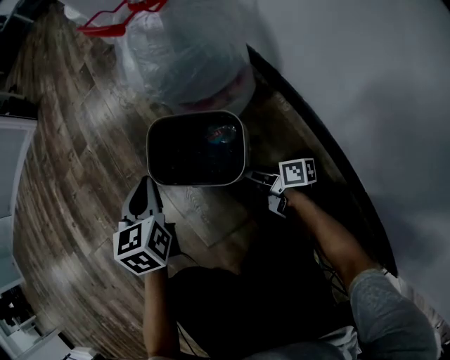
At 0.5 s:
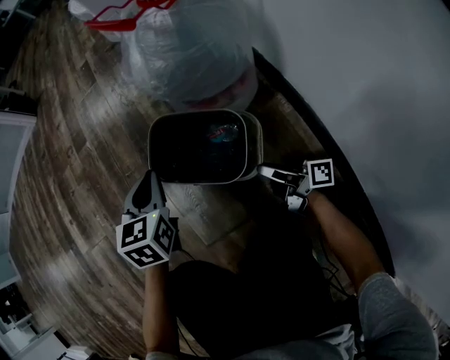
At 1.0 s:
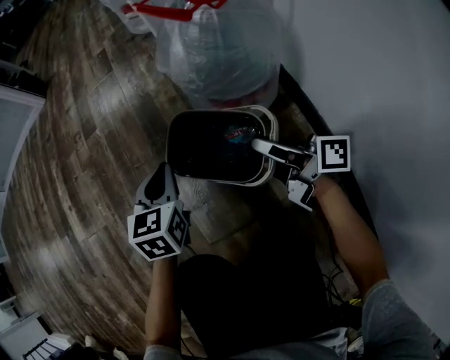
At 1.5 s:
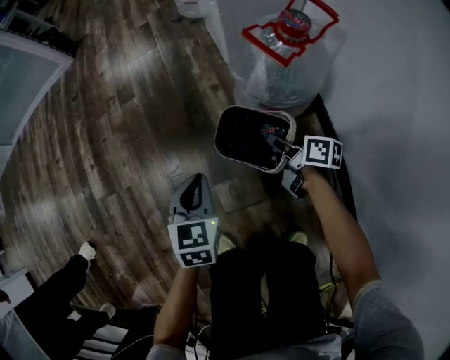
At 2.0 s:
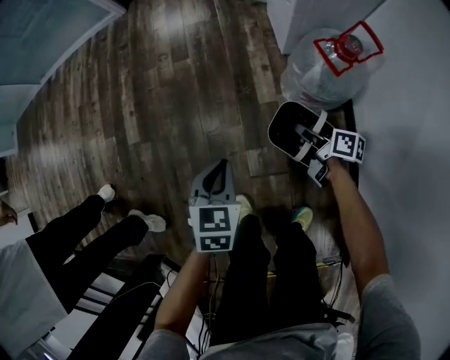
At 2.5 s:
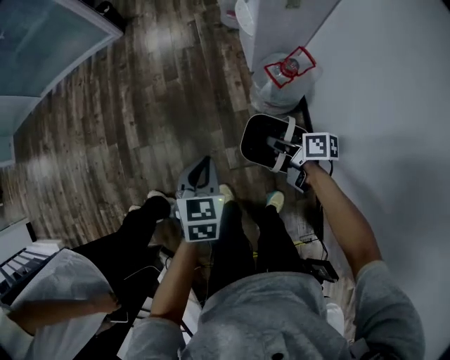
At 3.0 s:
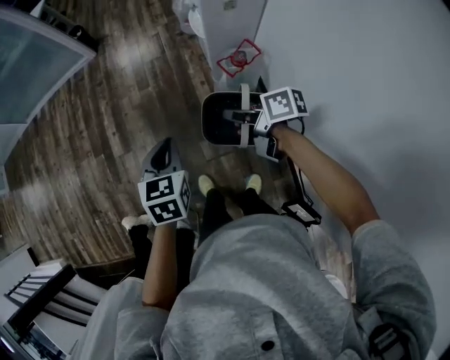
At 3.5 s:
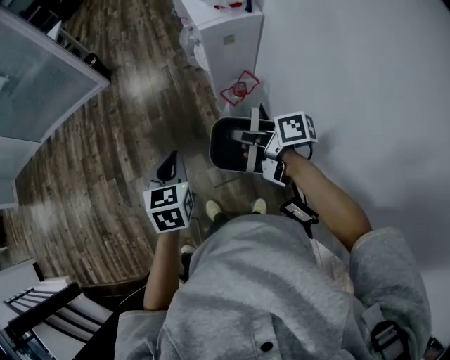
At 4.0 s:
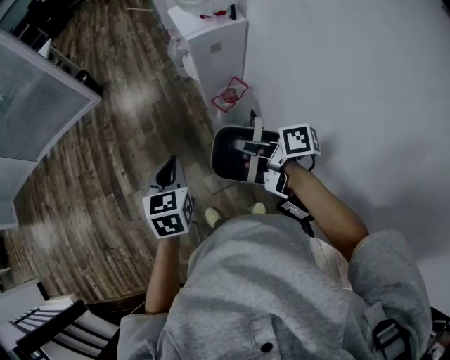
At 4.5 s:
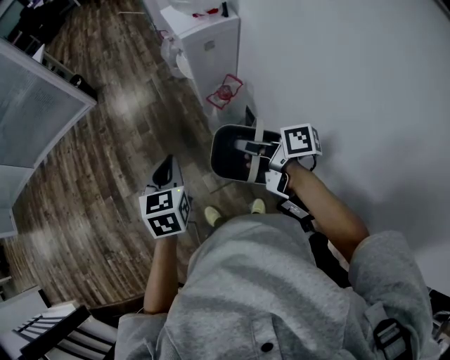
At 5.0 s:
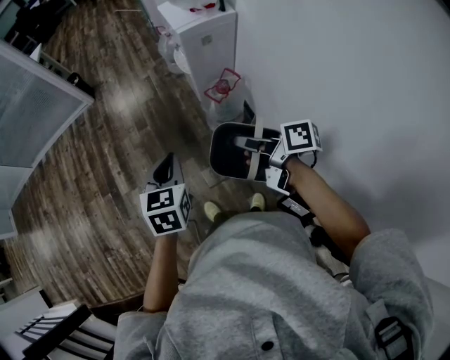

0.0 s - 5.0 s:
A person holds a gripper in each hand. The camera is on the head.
0.0 s - 2.5 s: Both grippers travel together upward, roughly 60 cm. The right gripper swivels roughly 20 degrees, and closes.
2.5 s - 5.0 s: Both grippers move upward, some 25 cm.

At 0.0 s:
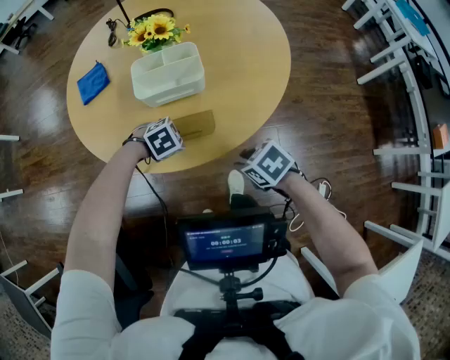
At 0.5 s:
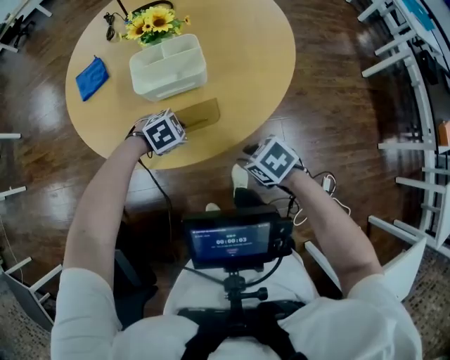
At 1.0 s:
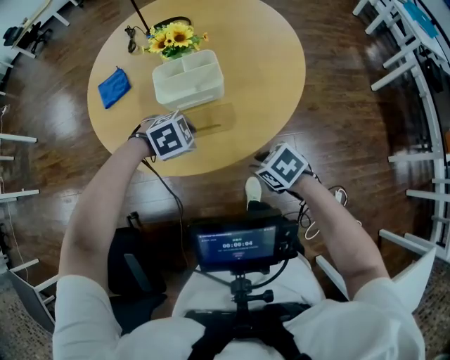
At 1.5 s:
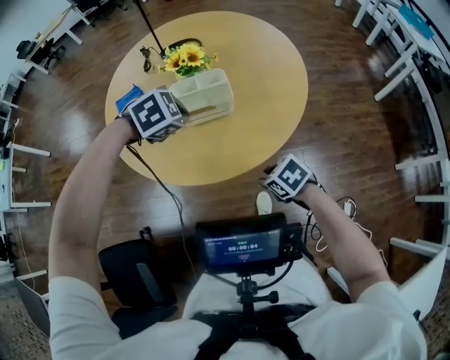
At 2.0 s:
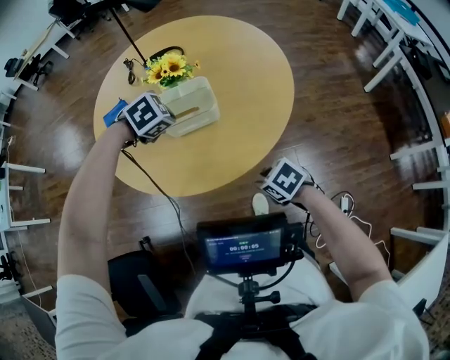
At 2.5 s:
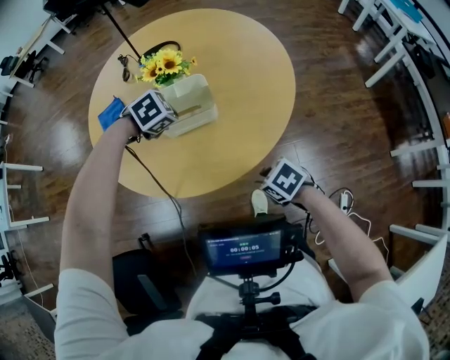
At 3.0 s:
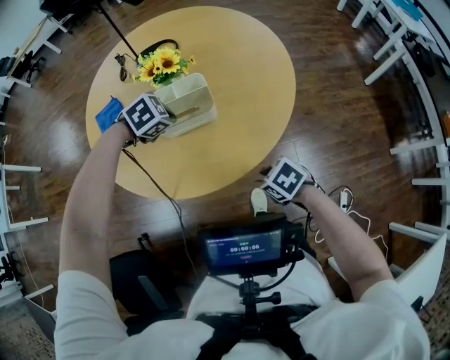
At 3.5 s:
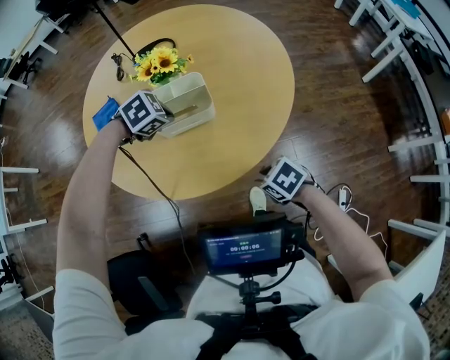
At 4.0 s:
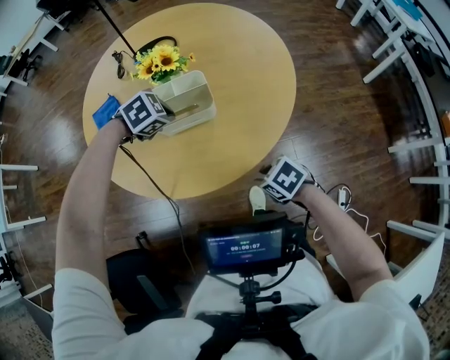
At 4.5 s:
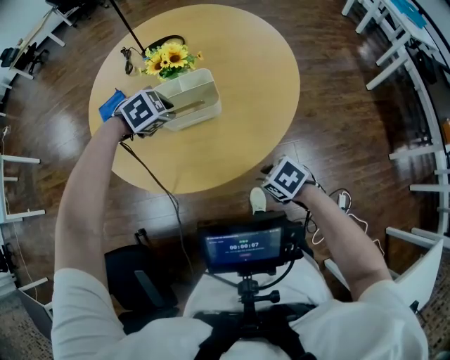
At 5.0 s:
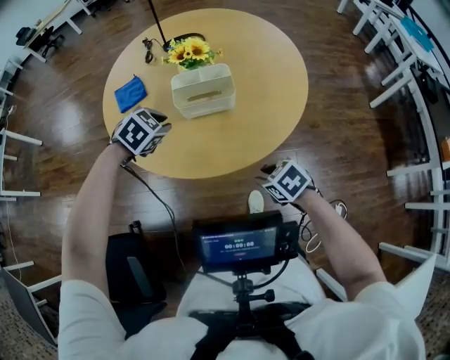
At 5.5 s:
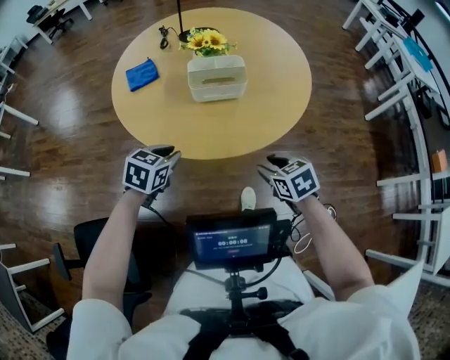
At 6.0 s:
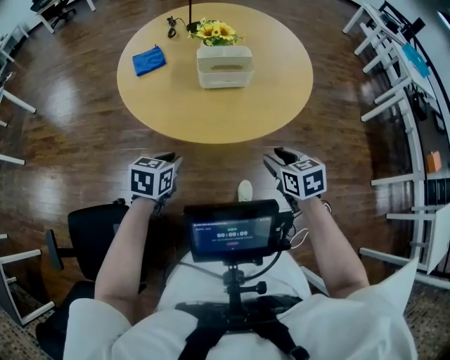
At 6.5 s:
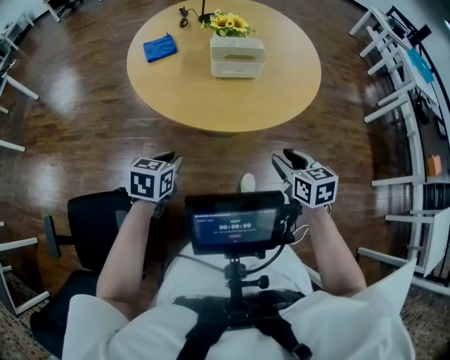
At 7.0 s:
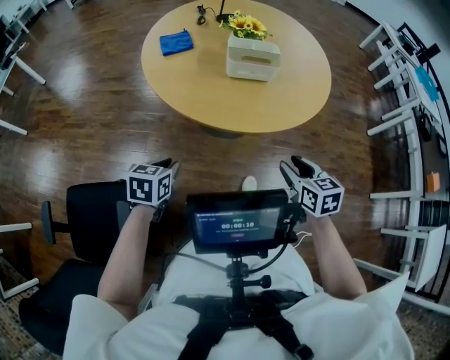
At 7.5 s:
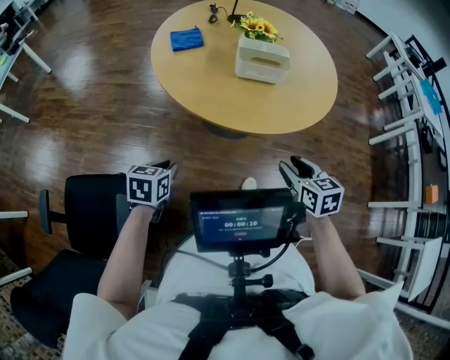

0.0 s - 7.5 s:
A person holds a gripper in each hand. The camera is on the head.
0.0 s - 2.0 s: The left gripper travels upward by some 20 cm.
2.0 s - 4.0 s: The left gripper goes roughly 5 cm downward.
4.0 s - 5.5 s: The left gripper moves approximately 25 cm, swivels some 50 degrees, and opens, while the right gripper heads upward, covering approximately 5 cm, and swivels roughly 20 degrees.
5.5 s - 7.5 s: The right gripper shifts roughly 10 cm backward. The left gripper heads backward and to the left, covering approximately 20 cm, and rotates some 30 degrees.

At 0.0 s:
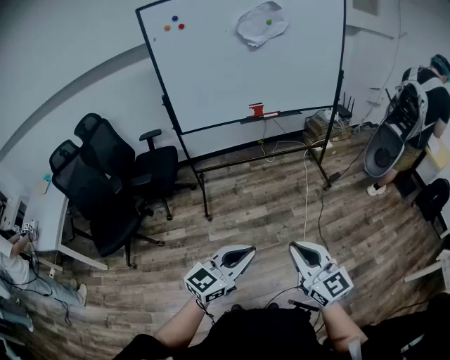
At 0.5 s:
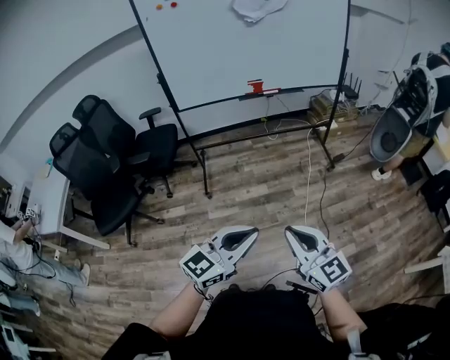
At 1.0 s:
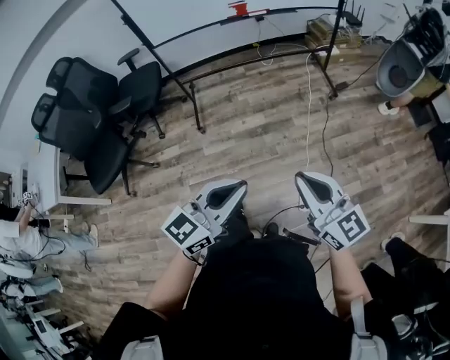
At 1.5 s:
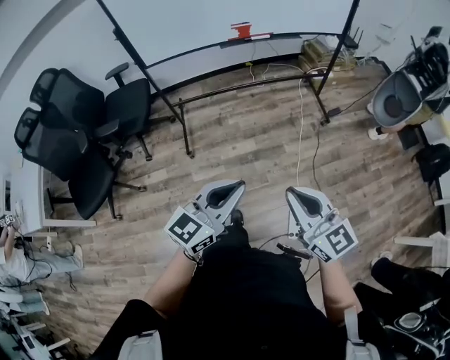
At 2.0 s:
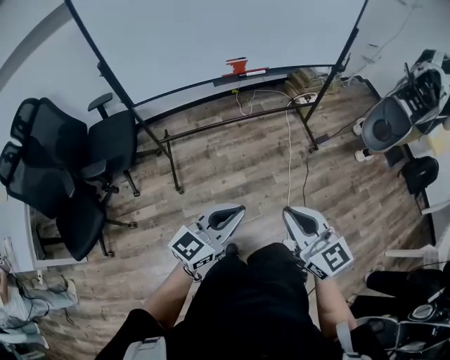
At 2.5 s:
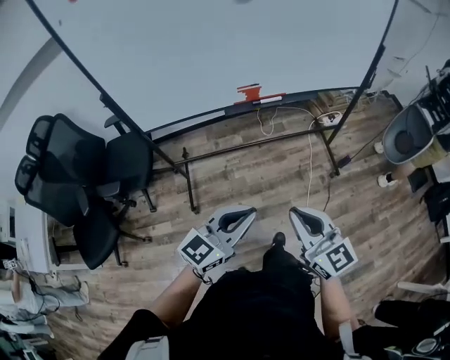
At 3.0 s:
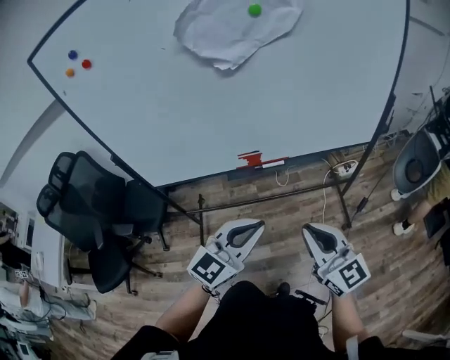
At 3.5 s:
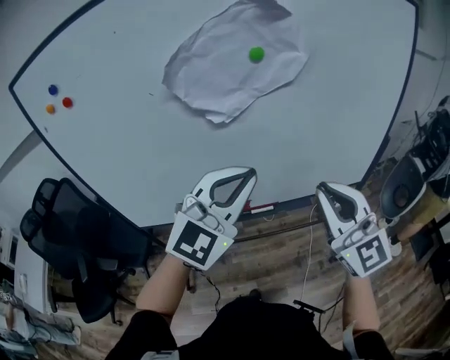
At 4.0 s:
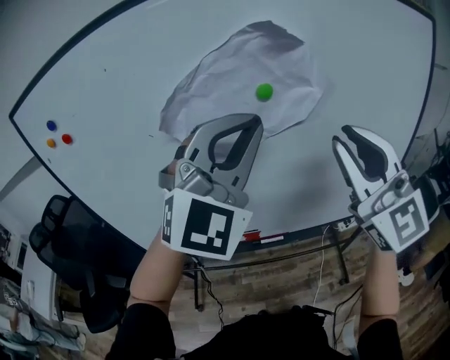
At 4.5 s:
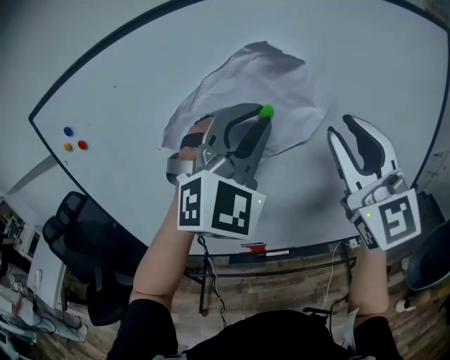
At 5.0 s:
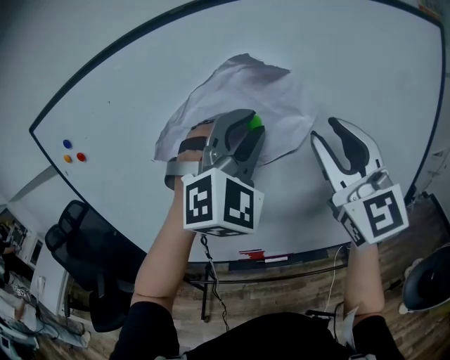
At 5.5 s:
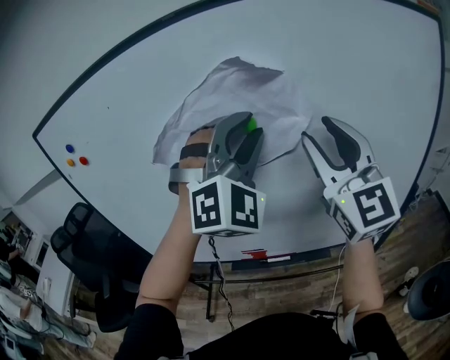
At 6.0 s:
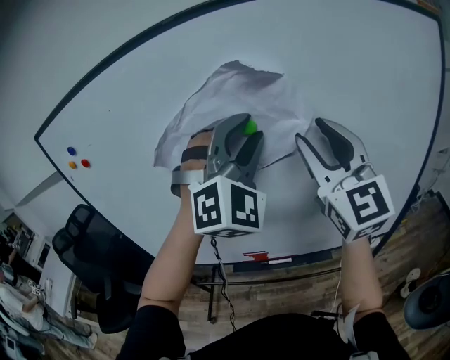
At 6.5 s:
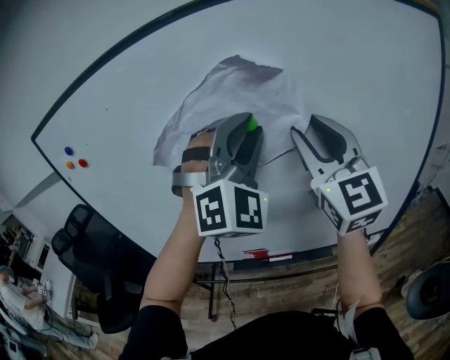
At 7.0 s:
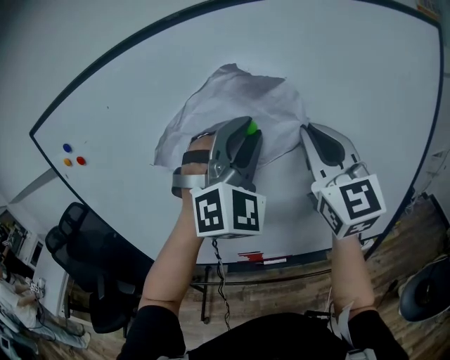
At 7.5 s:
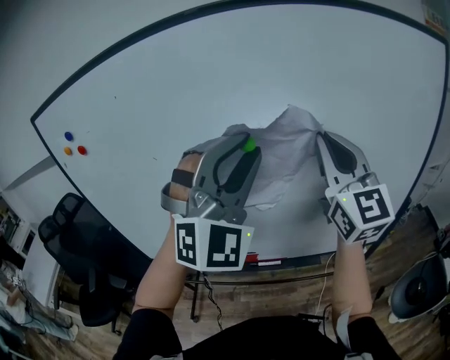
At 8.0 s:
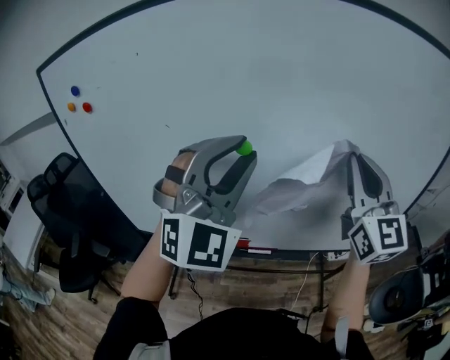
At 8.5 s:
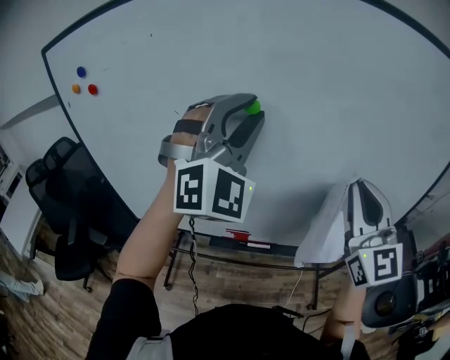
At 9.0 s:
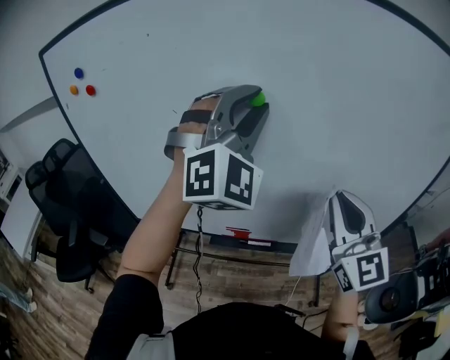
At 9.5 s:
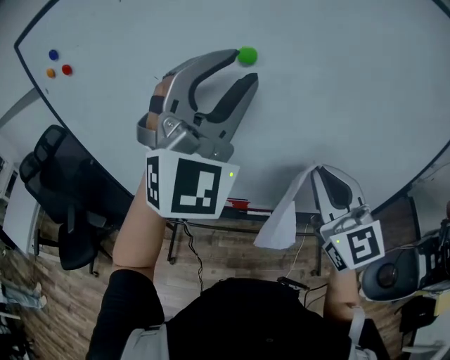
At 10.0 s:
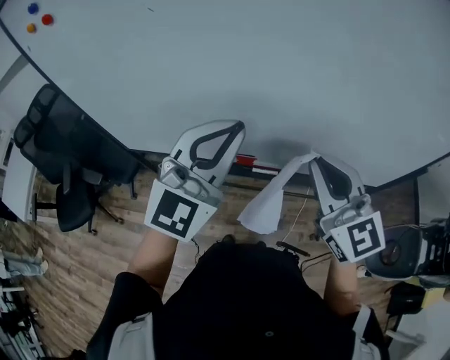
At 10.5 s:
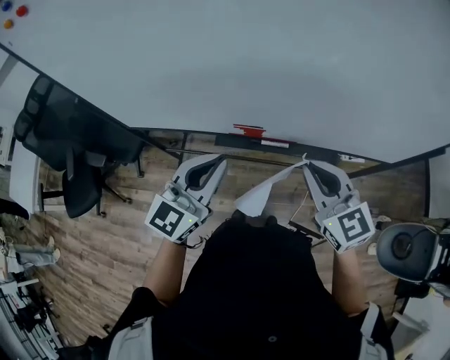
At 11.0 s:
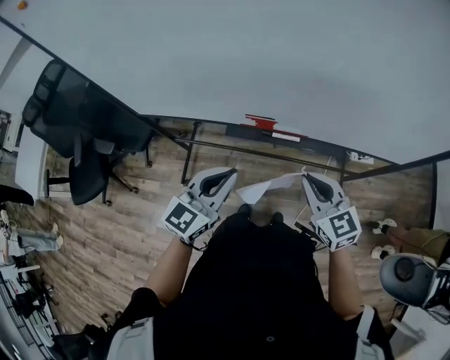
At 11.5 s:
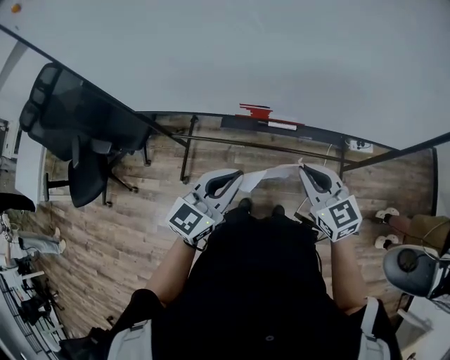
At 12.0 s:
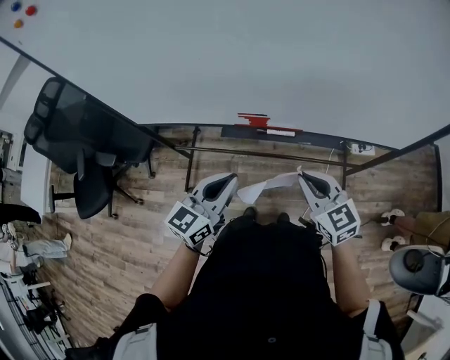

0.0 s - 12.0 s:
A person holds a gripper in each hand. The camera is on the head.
0.0 s - 2.0 s: The grippers both shift forward by roughly 30 cm.
2.0 s - 4.0 s: The two grippers travel together, forward, about 60 cm. Both grippers move upward, some 40 cm. The right gripper changes its angle by approximately 40 degrees, while the left gripper rotates around the line of its fingers by approximately 70 degrees, clockwise from behind.
4.0 s - 6.0 s: Both grippers move forward, about 10 cm. The right gripper opens its fingers; the left gripper swivels roughly 30 degrees, and opens up.
6.0 s - 8.0 s: The right gripper shifts by some 5 cm, and closes. Meanwhile the left gripper shifts about 10 cm backward and to the left.
8.0 s - 10.0 s: The right gripper heads downward and to the left, covering about 25 cm, and swivels some 30 degrees, while the left gripper heads downward, covering approximately 15 cm, rotates approximately 40 degrees, and closes.
10.0 s - 12.0 s: The left gripper shifts some 30 cm downward and backward, and rotates around the line of its fingers by approximately 40 degrees, counterclockwise from behind; the right gripper heads downward, covering some 25 cm, and turns by about 20 degrees.

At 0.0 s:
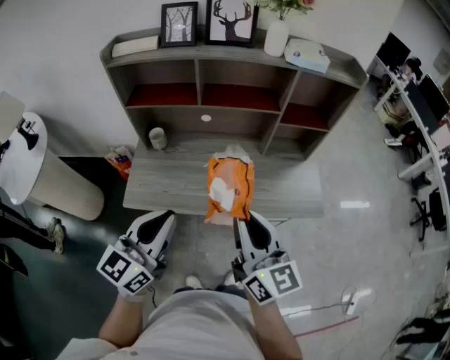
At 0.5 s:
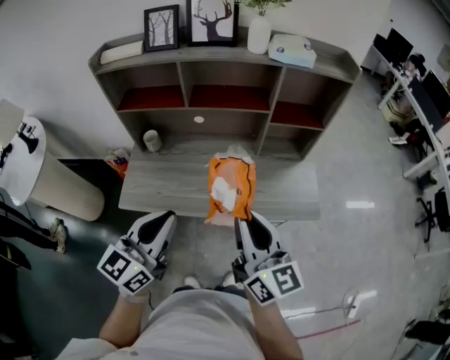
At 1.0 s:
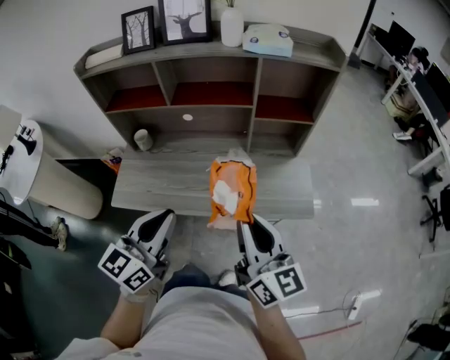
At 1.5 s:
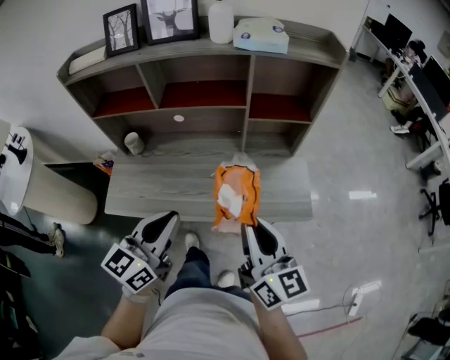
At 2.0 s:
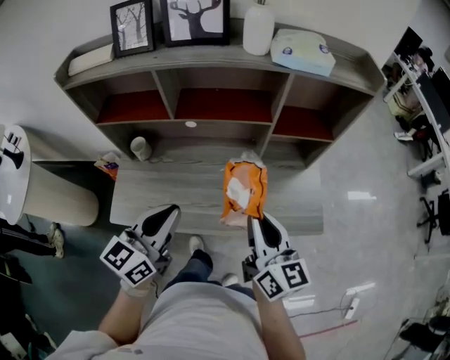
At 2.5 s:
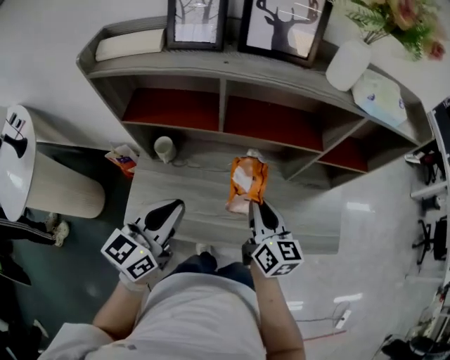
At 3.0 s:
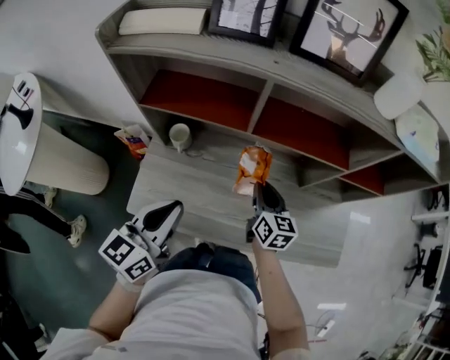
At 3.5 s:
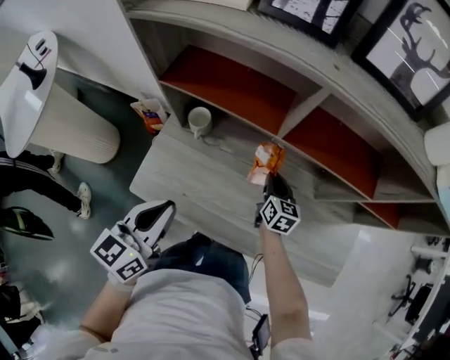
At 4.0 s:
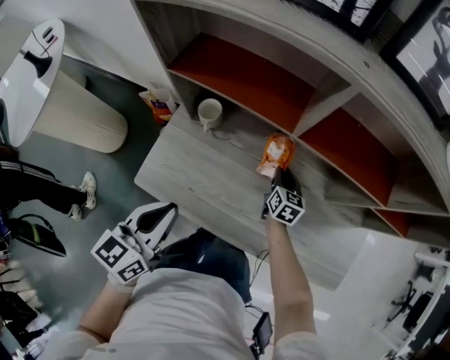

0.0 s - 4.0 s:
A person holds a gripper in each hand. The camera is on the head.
0.0 s - 2.0 s: The right gripper moves forward, to the right and downward, roughly 20 cm, while the left gripper heads forward and to the right, covering approximately 20 cm.
2.0 s - 4.0 s: The left gripper heads to the left and downward, covering roughly 25 cm, and rotates roughly 30 degrees. The right gripper moves downward, forward and to the left, some 50 cm, and turns by about 30 degrees.
